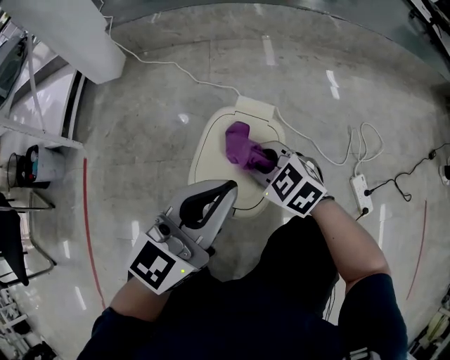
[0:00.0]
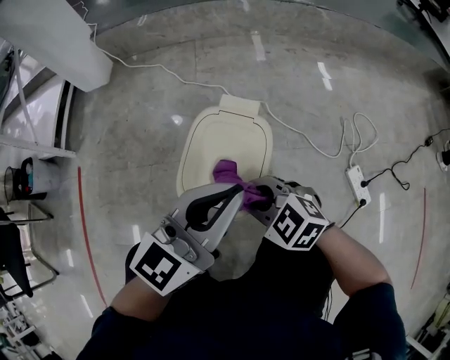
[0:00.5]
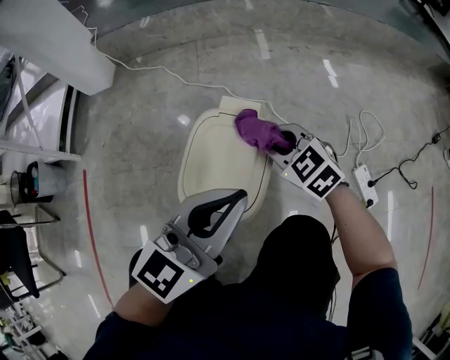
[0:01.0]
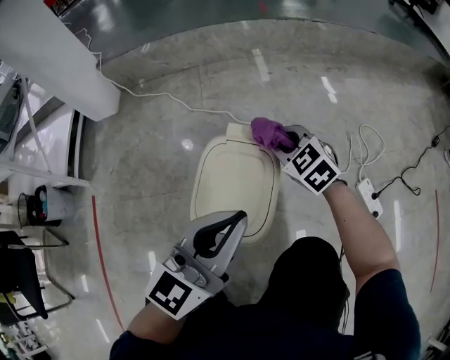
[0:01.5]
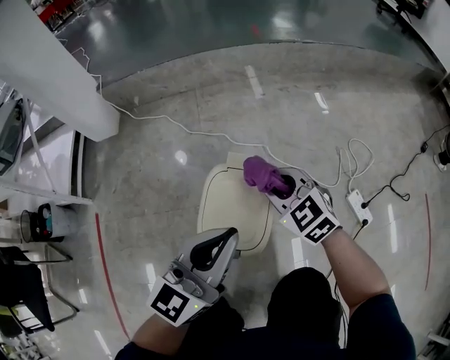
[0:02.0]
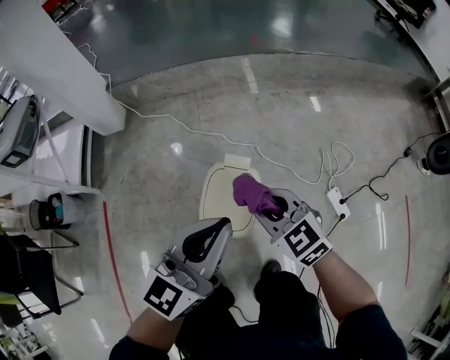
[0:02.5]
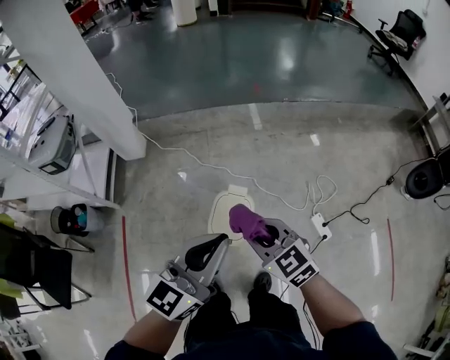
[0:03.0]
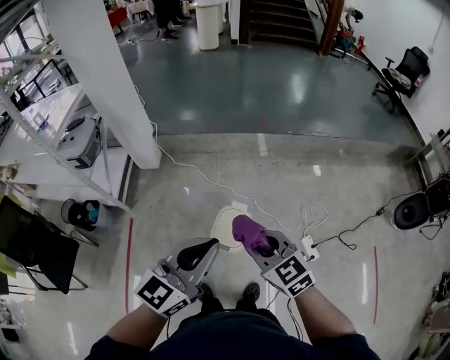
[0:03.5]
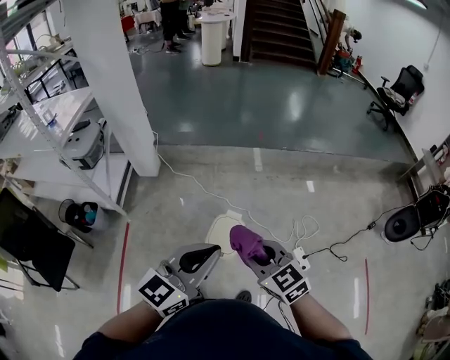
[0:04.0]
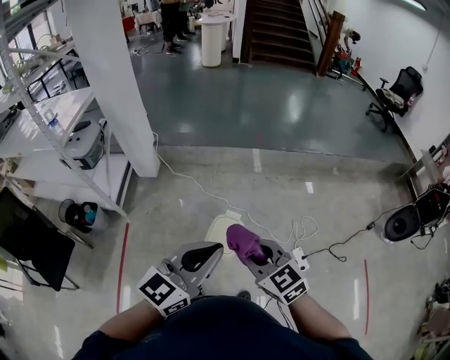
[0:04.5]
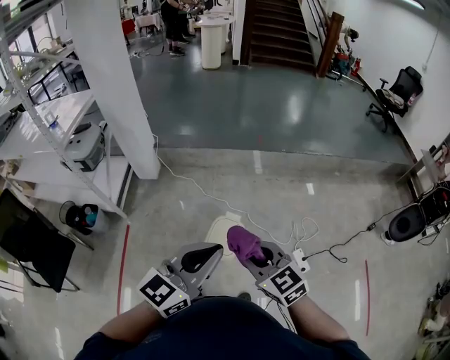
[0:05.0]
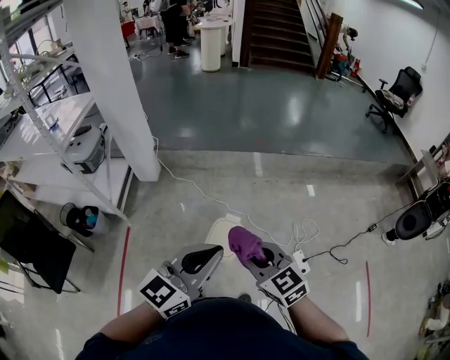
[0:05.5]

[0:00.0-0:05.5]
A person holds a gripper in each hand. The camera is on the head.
0:00.0 to 0:02.0: The right gripper goes forward and backward, roughly 20 cm each way, reversing 2 times.
0:02.0 to 0:03.5: Both grippers move upward, about 50 cm.
0:03.5 to 0:05.5: Both grippers travel together backward, approximately 5 cm.

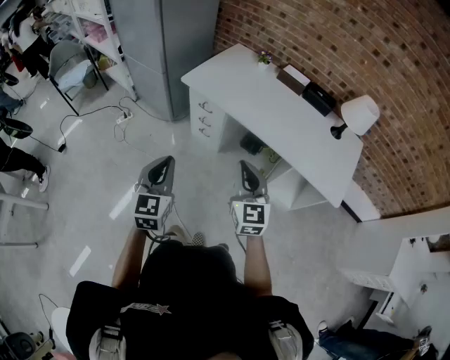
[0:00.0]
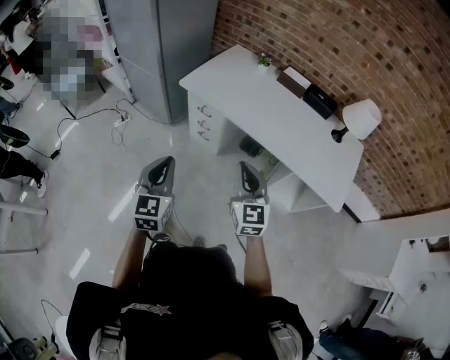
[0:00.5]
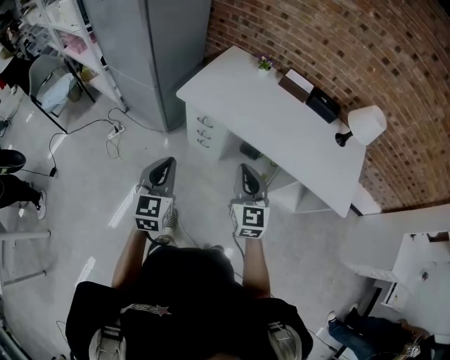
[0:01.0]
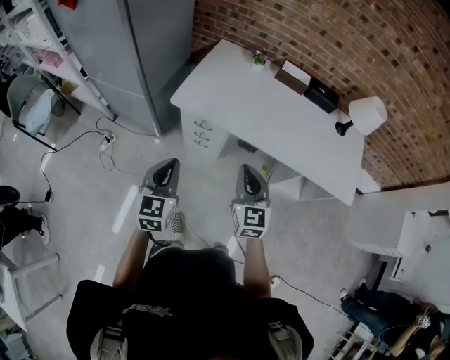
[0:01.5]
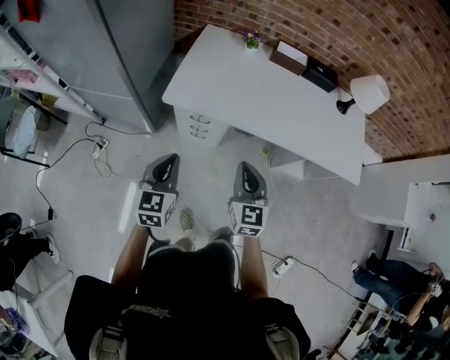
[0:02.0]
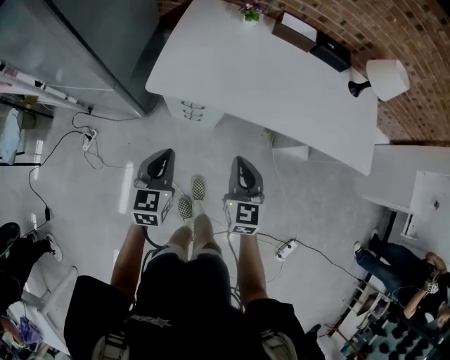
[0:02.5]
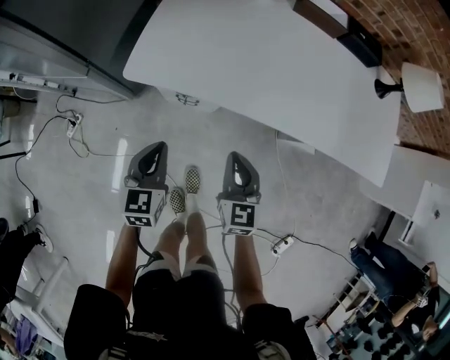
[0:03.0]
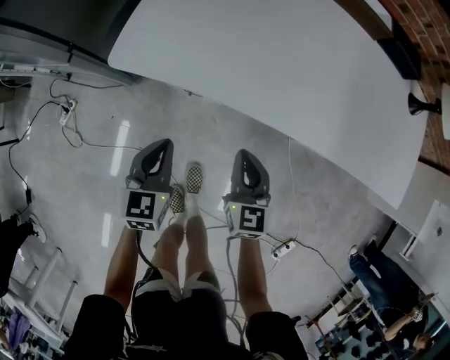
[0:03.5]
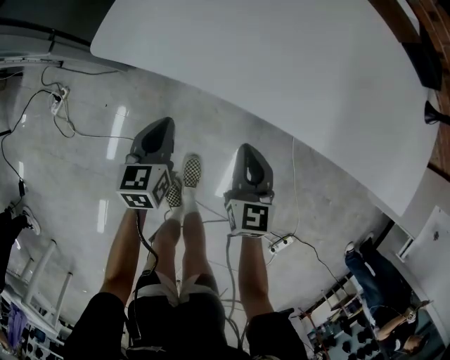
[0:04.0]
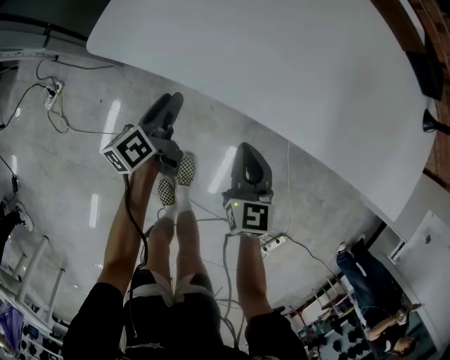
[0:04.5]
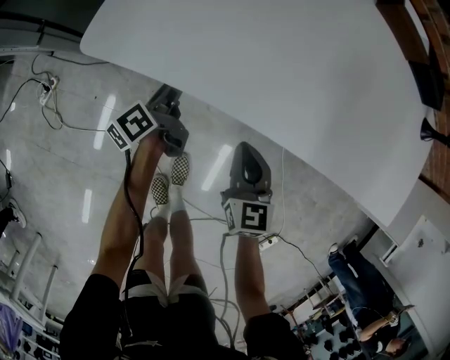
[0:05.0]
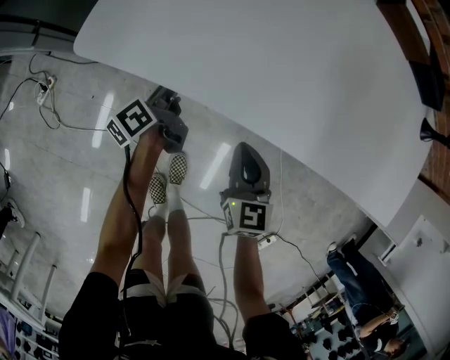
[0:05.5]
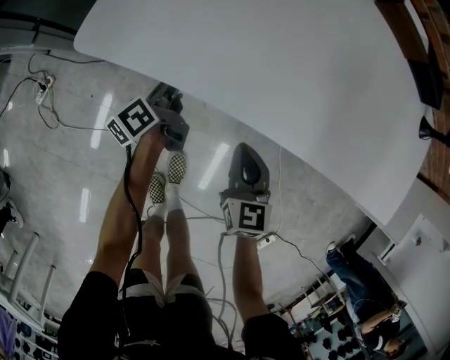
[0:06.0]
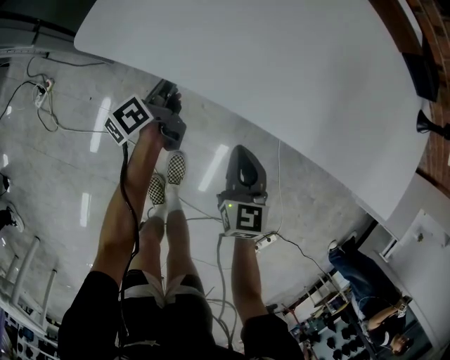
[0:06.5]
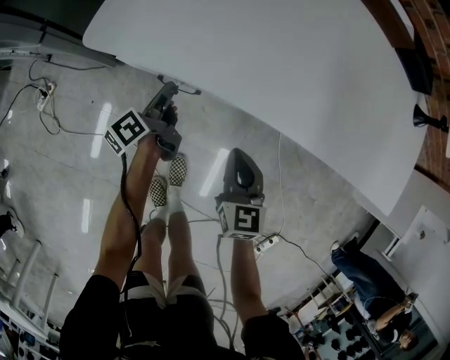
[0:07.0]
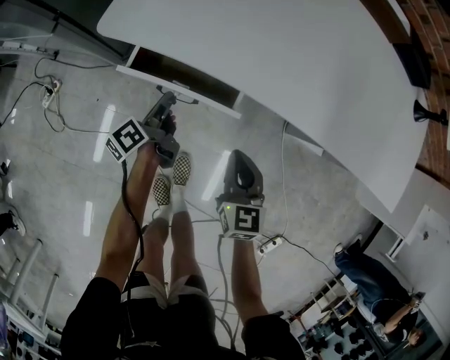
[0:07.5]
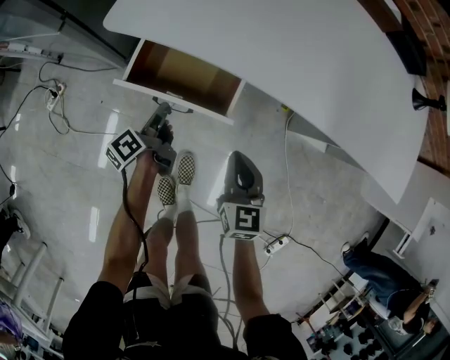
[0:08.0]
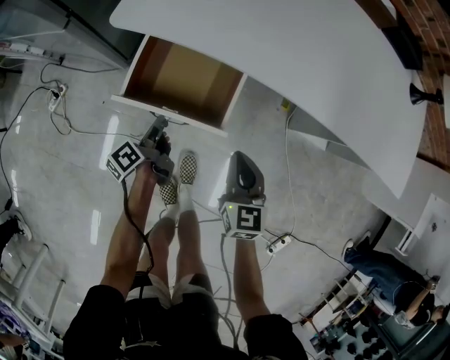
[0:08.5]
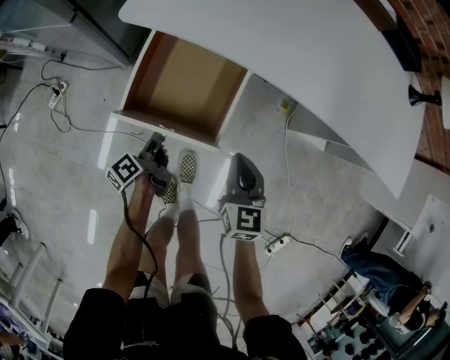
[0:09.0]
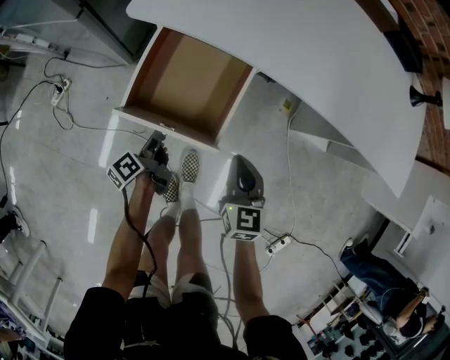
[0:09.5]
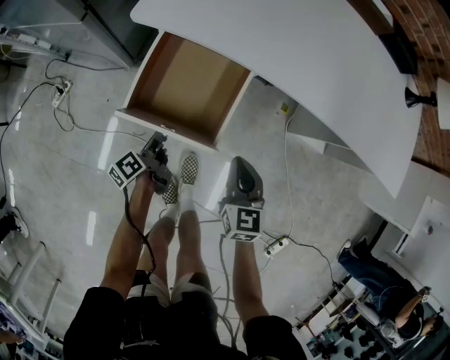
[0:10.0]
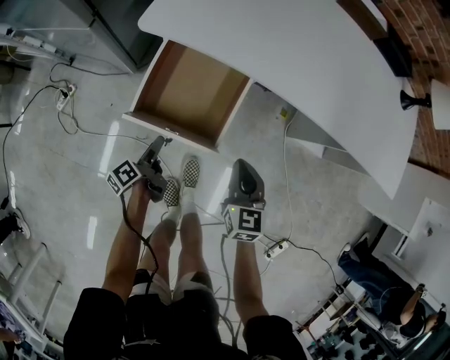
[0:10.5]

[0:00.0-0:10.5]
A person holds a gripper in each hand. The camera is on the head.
0:00.0 to 0:02.0: The right gripper shifts by roughly 30 cm, and changes its angle by some 30 degrees, while the left gripper shifts by roughly 35 cm, and turns by about 30 degrees.
0:02.0 to 0:04.0: Both grippers travel together downward, about 40 cm. The left gripper turns by approximately 20 degrees.
0:04.0 to 0:06.5: The left gripper shifts approximately 15 cm forward and downward, twists about 50 degrees counterclockwise, seen from behind, and opens, then closes once more.
0:06.5 to 0:08.5: The right gripper is displaced backward by about 10 cm. The left gripper is displaced backward by approximately 20 cm.
0:08.5 to 0:10.5: The left gripper is displaced backward by about 10 cm, and opens up.

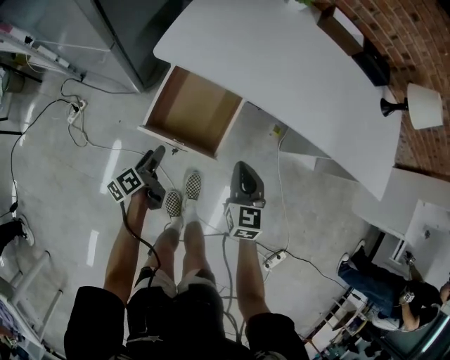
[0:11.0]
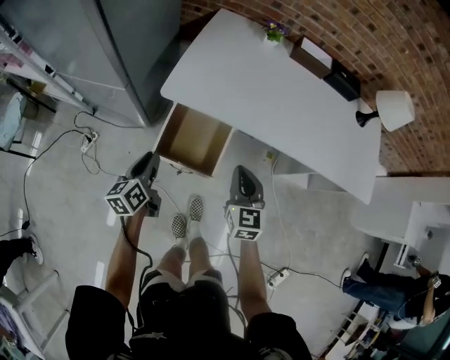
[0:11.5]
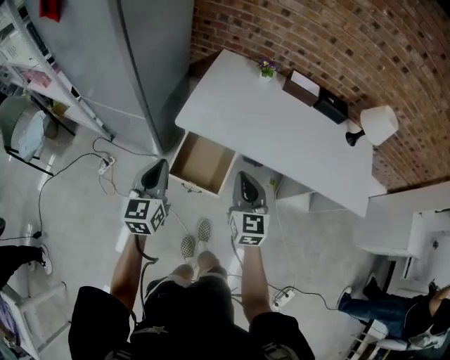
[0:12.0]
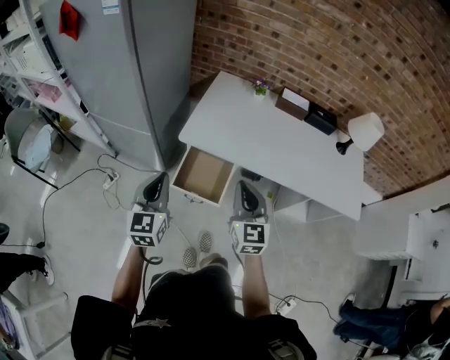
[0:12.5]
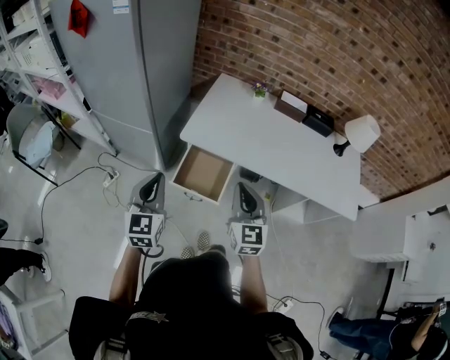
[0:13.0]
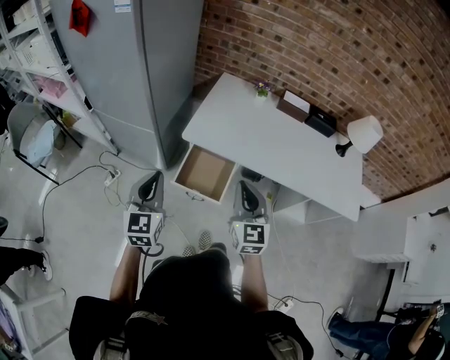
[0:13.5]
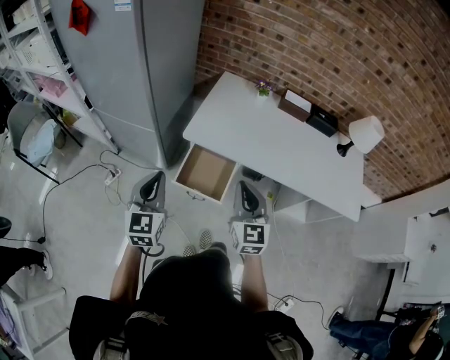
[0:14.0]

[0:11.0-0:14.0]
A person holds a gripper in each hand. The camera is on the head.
0:11.0 to 0:12.5: Both grippers move upward, approximately 40 cm. The right gripper changes its angle by some 20 degrees; the left gripper rotates around the line of its fingers by approximately 70 degrees, clockwise from behind, and closes up.
0:12.5 to 0:14.0: There are only small adjustments of the grippers.

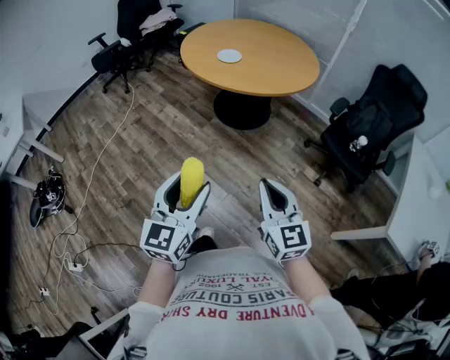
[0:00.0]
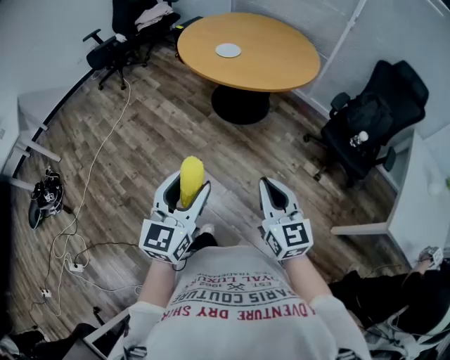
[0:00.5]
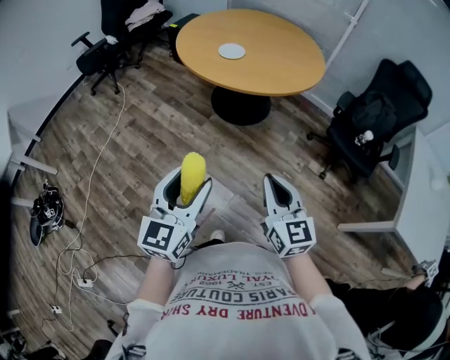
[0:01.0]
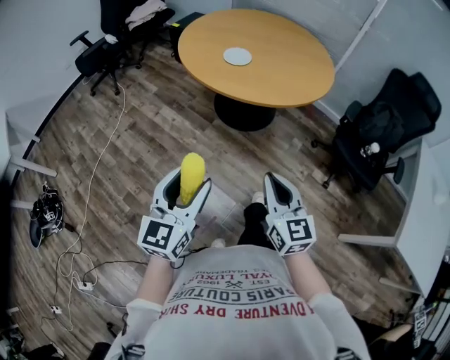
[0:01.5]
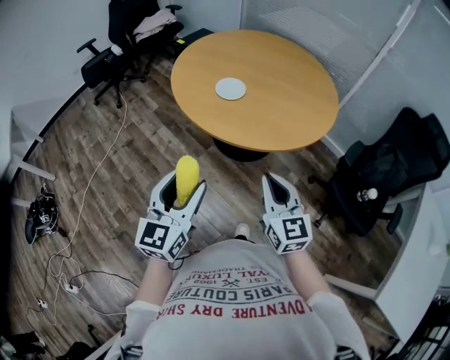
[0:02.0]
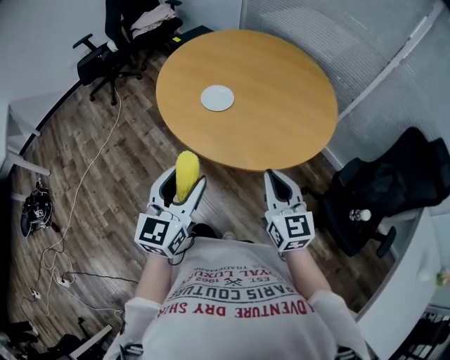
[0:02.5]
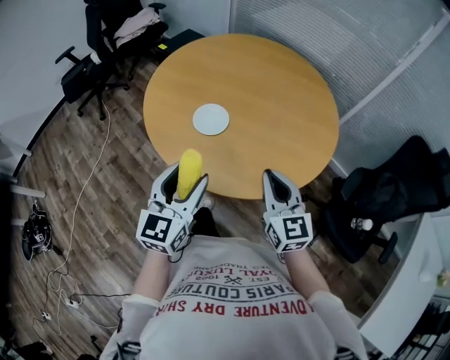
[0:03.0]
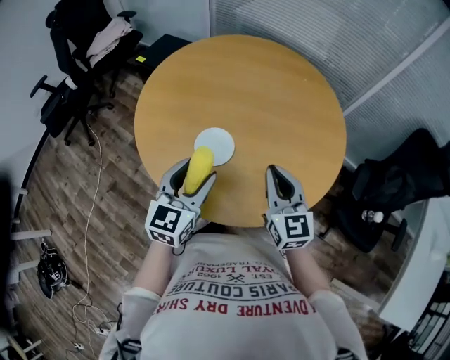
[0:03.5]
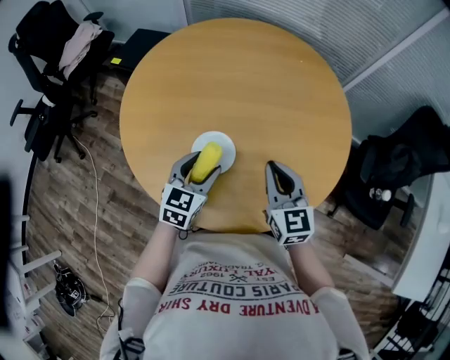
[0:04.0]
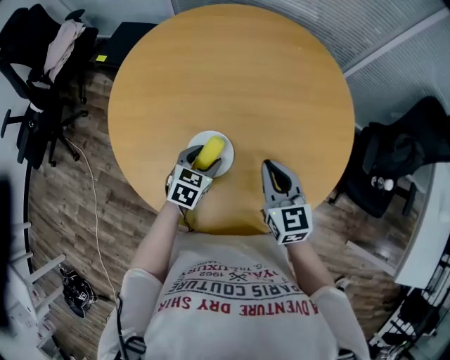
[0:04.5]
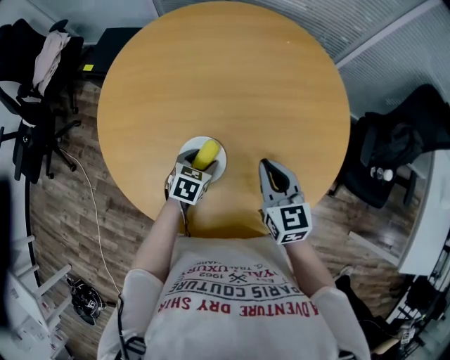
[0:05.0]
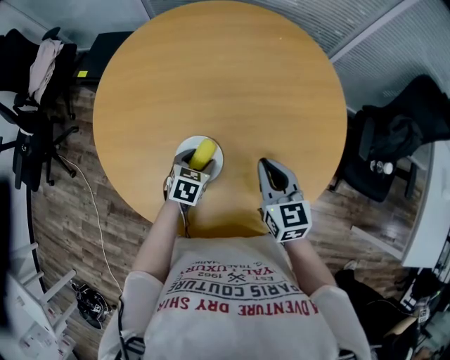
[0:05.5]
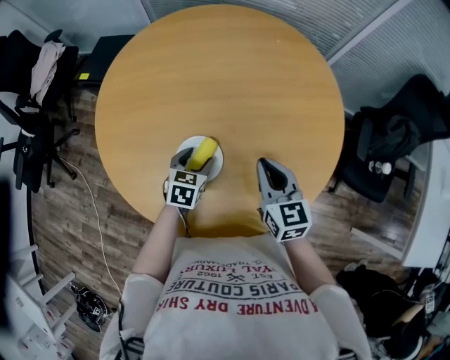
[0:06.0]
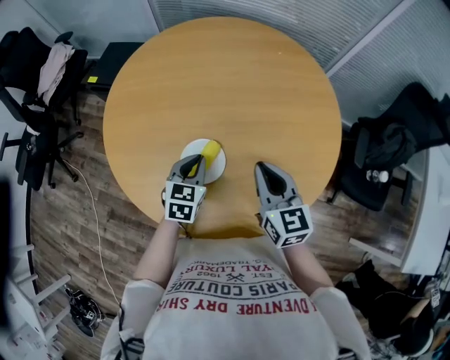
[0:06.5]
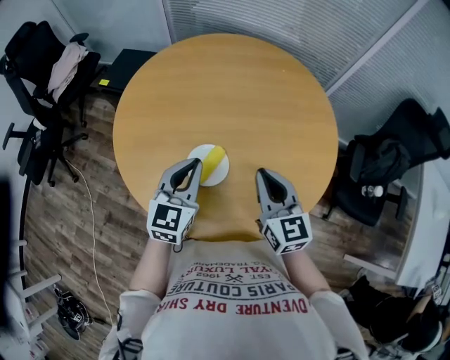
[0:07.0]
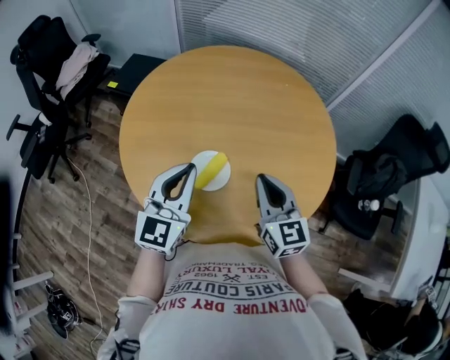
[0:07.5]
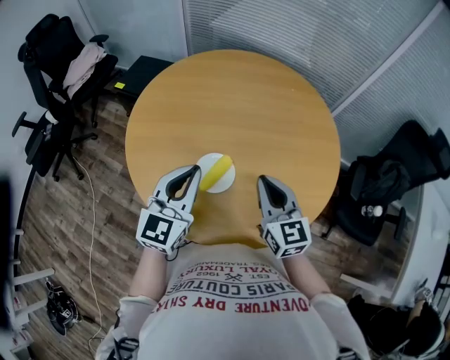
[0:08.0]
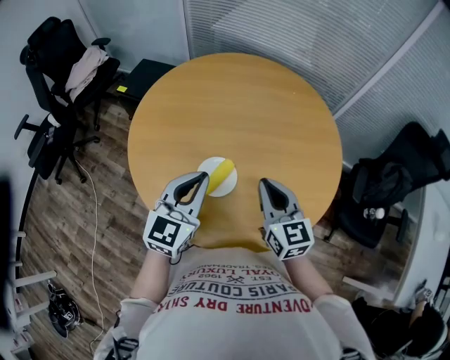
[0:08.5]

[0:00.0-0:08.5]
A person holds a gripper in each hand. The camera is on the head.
0:00.0 to 0:02.0: The two grippers go some 35 cm forward.
0:02.0 to 0:04.0: The left gripper changes place by some 50 cm, and rotates about 40 degrees. The right gripper moves roughly 40 cm, and changes its angle by roughly 20 degrees.
0:04.0 to 0:06.5: The left gripper shifts about 5 cm forward, goes downward and returns, some 15 cm each way, and closes up.
0:06.5 to 0:08.5: The right gripper changes place by about 5 cm; the left gripper is displaced upward by roughly 20 cm, and swivels about 30 degrees.
